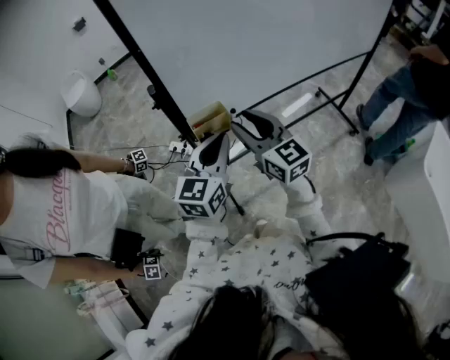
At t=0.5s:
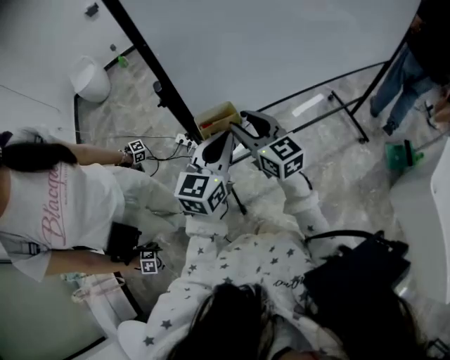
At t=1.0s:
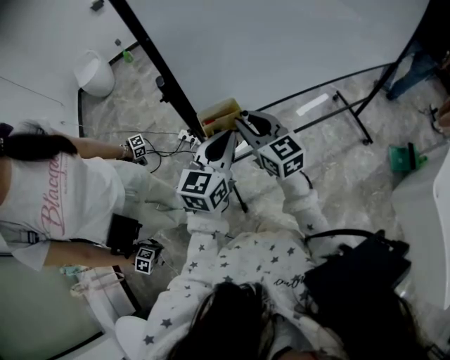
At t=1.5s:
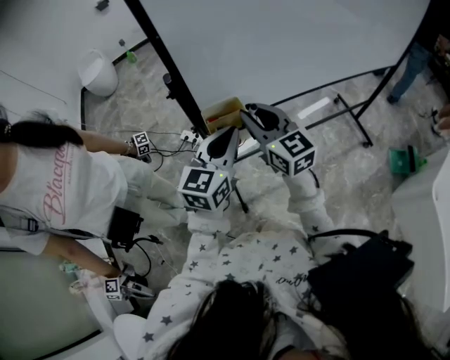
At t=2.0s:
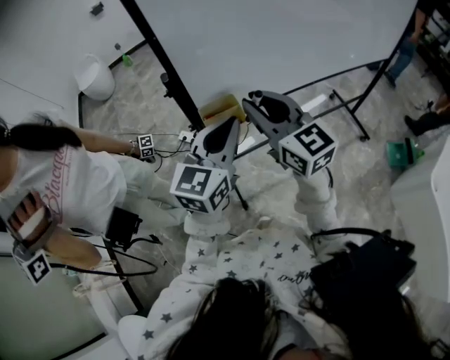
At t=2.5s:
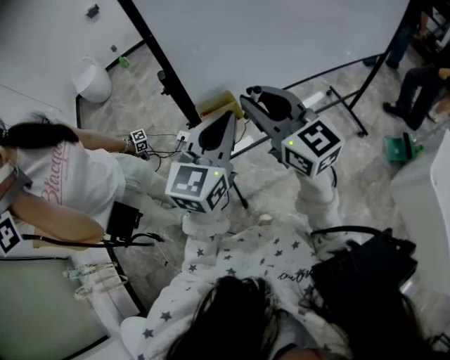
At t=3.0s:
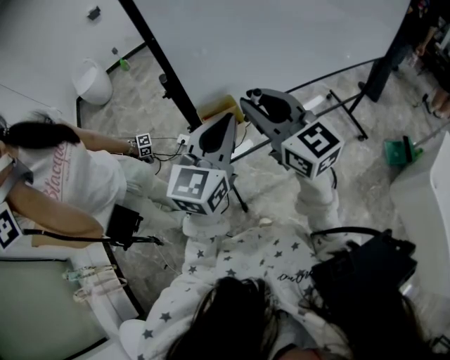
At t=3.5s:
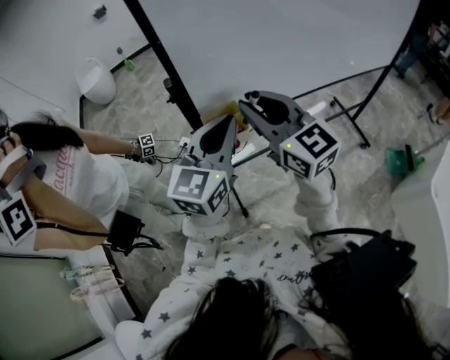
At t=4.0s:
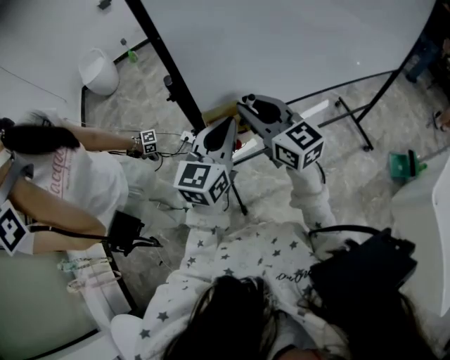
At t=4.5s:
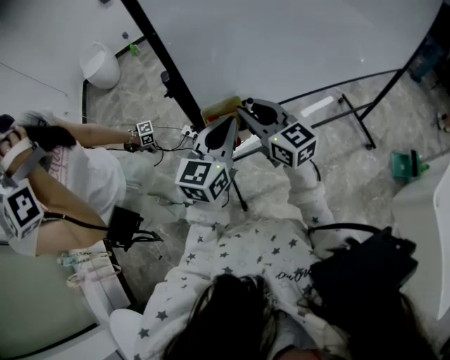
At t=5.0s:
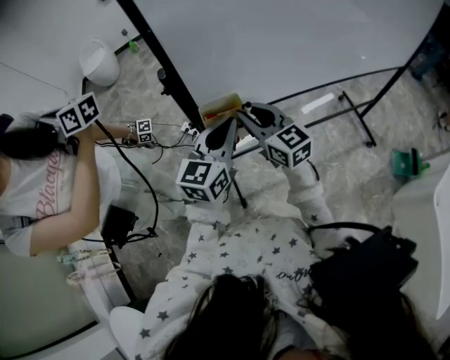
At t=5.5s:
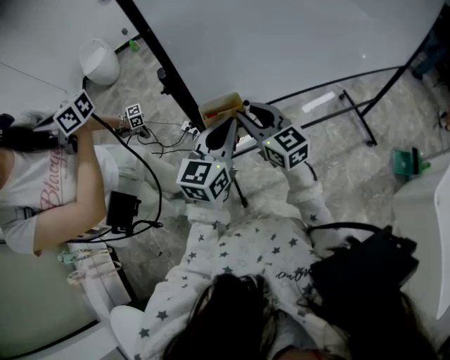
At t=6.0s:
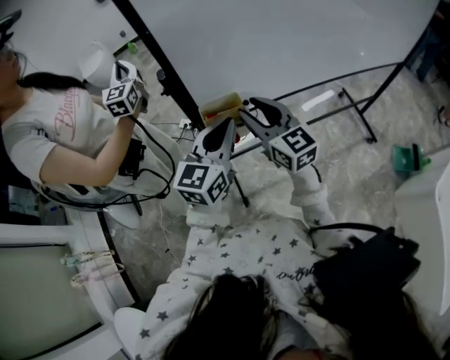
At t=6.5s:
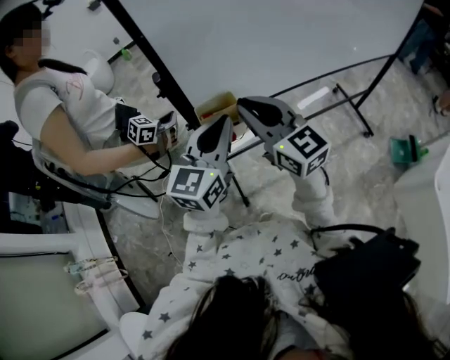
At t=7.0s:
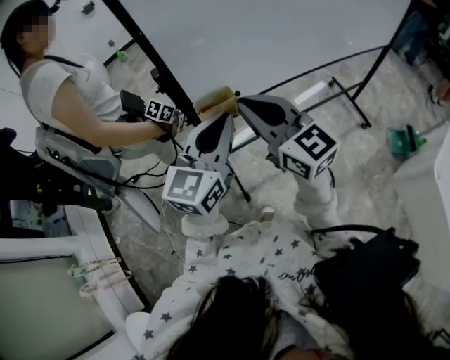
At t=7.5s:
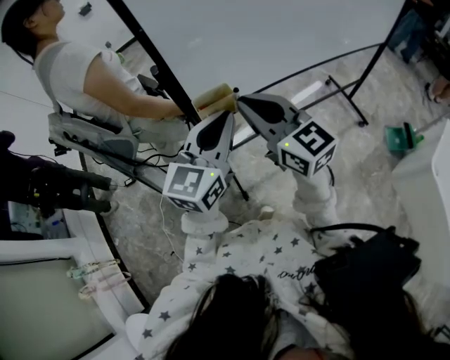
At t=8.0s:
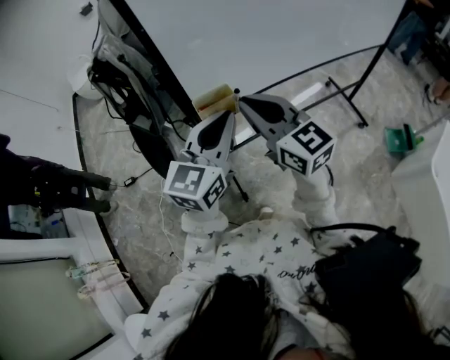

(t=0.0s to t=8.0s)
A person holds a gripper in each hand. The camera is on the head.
t=0.0s - t=2.0s: The grippers both shift upward by approximately 5 cm.
t=2.0s - t=4.0s: The right gripper changes place by some 5 cm. The left gripper ends up roughly 5 cm from where it was.
t=4.0s - t=6.0s: The right gripper moves downward, approximately 5 cm.
t=6.0s - t=8.0s: The grippers both shift upward by approximately 10 cm. The right gripper closes.

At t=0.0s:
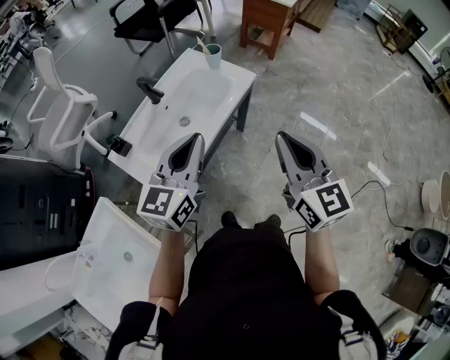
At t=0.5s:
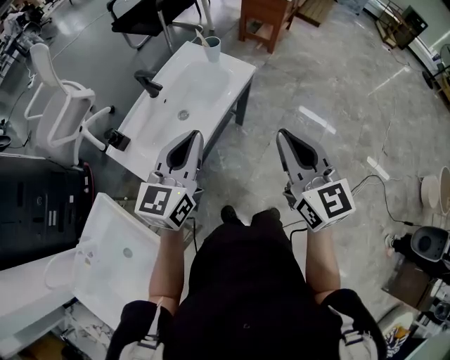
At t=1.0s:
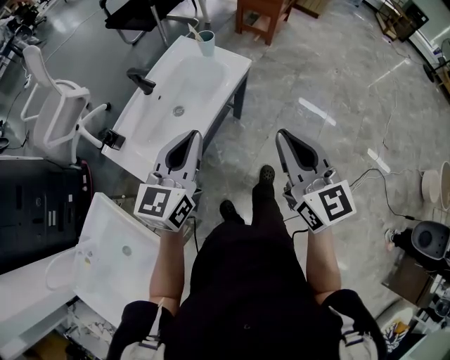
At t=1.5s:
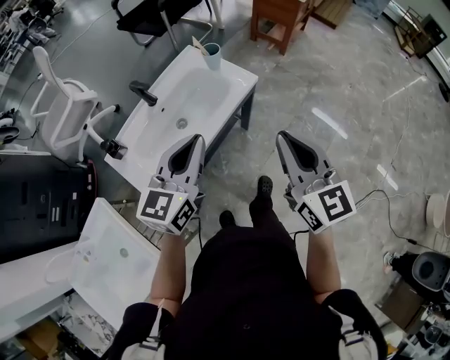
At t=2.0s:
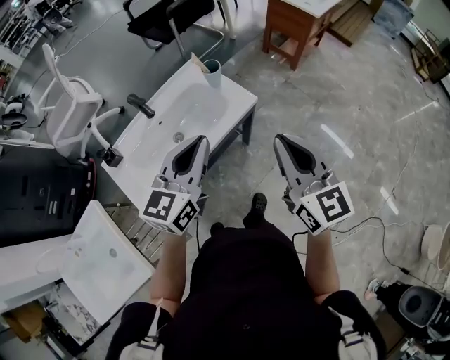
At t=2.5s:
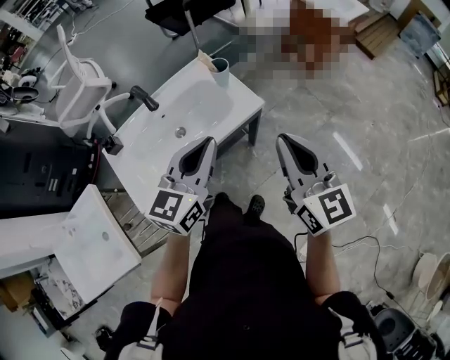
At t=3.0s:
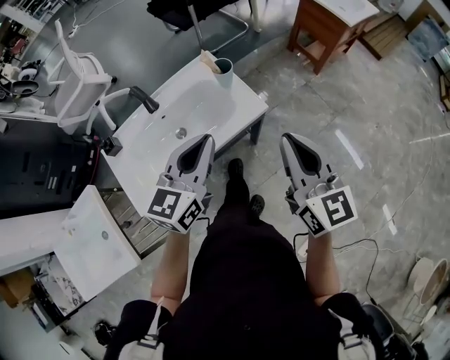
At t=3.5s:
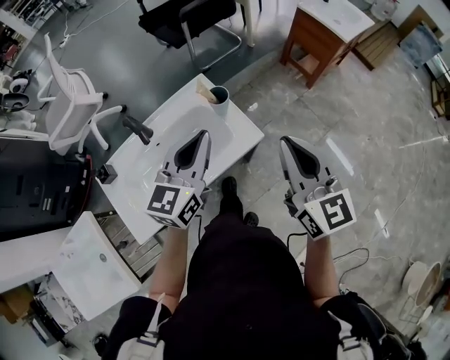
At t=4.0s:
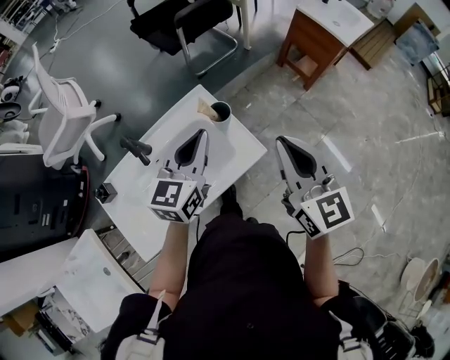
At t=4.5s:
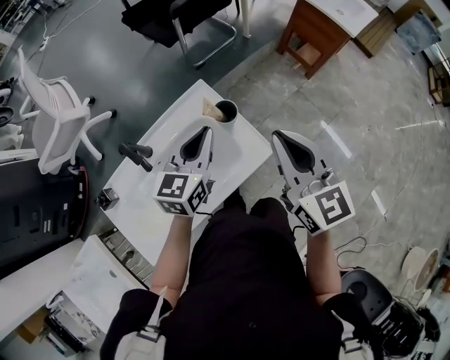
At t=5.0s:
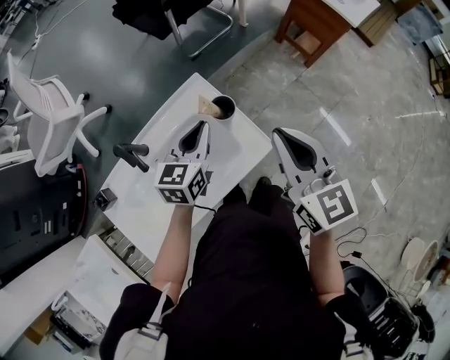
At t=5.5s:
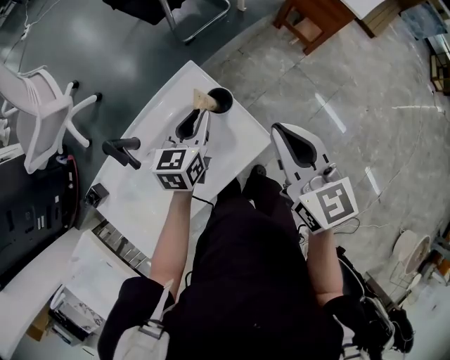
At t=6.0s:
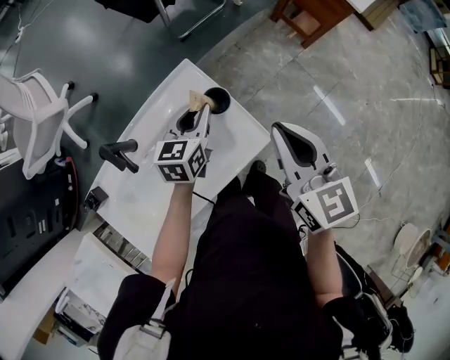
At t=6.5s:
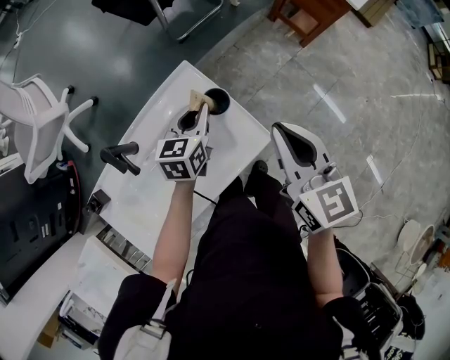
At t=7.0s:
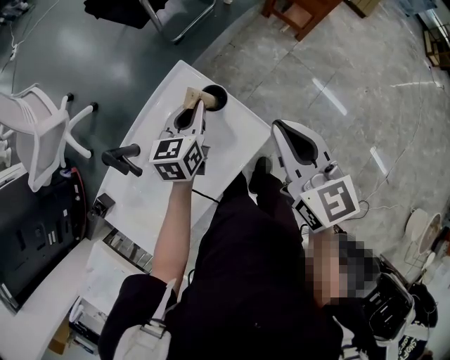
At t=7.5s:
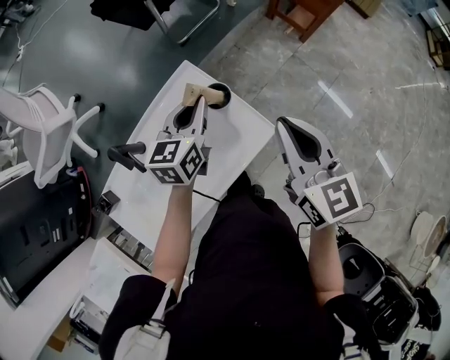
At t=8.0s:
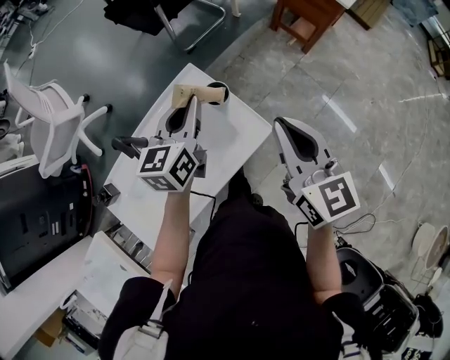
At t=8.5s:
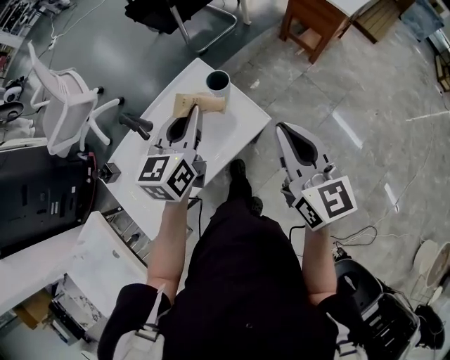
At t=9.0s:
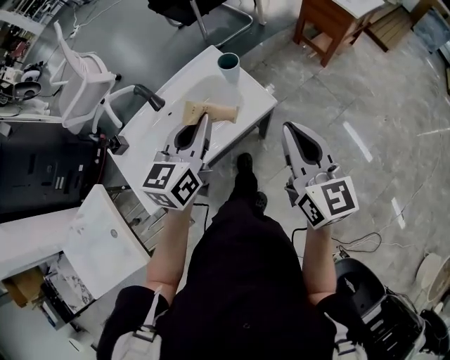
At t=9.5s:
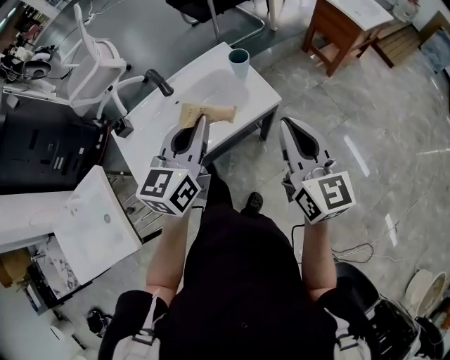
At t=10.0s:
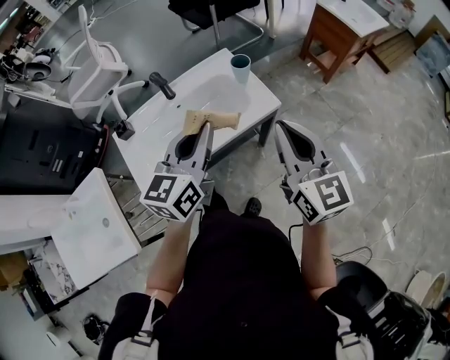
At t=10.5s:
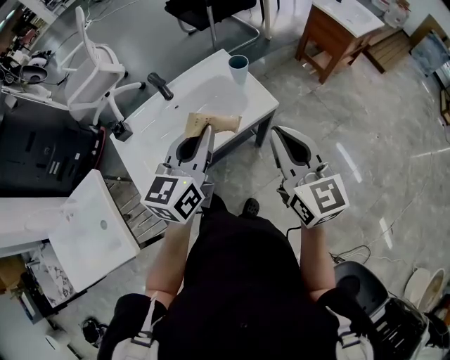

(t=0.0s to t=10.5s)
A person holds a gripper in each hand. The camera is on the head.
t=0.0s - t=2.0s: The two grippers go roughly 15 cm forward and to the right.
t=2.0s - t=4.0s: The two grippers go roughly 25 cm forward.
t=4.0s - t=6.5s: The left gripper travels downward and forward by about 20 cm, and rotates approximately 20 degrees, while the right gripper shifts some 10 cm forward and downward.
t=6.5s - t=8.5s: The right gripper moves backward, approximately 15 cm; the left gripper is displaced upward and backward by roughly 20 cm.
t=8.5s - t=10.5s: The right gripper travels backward and to the left by approximately 15 cm. Meanwhile the left gripper heads backward, covering about 20 cm.

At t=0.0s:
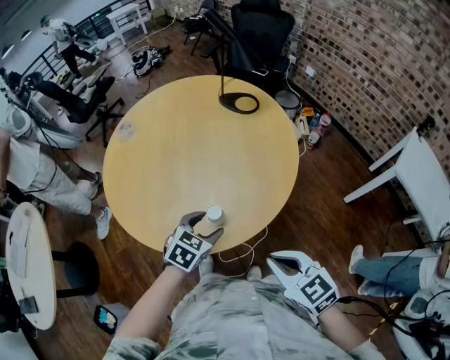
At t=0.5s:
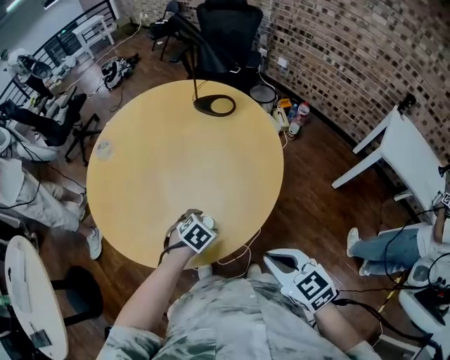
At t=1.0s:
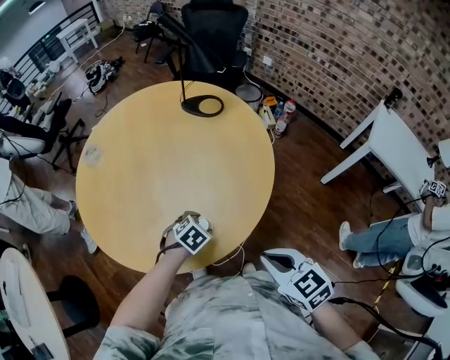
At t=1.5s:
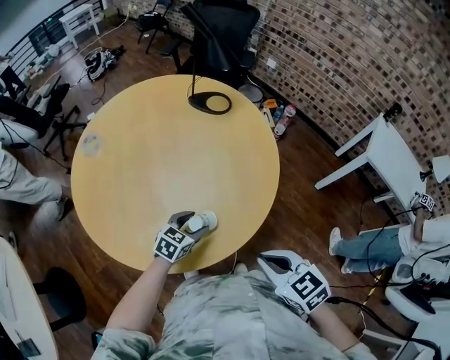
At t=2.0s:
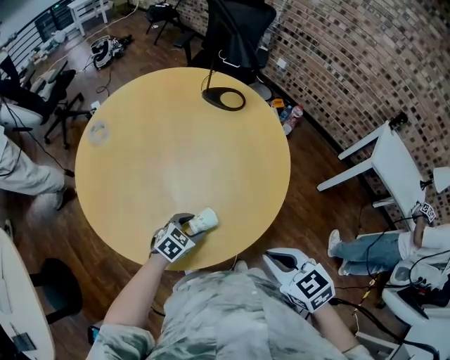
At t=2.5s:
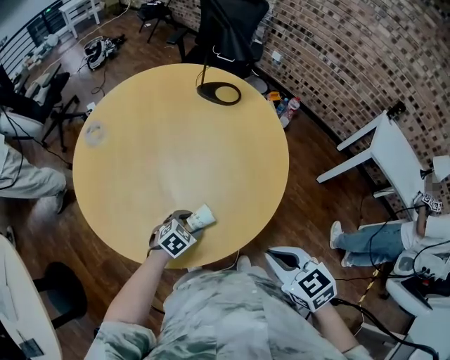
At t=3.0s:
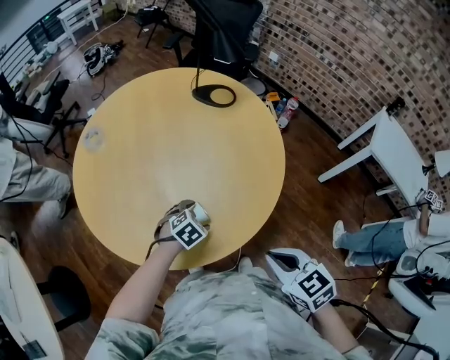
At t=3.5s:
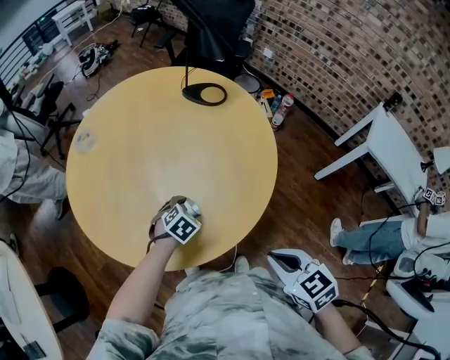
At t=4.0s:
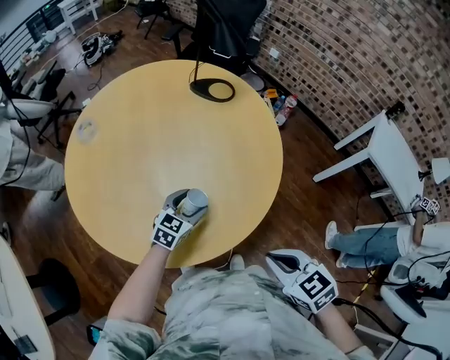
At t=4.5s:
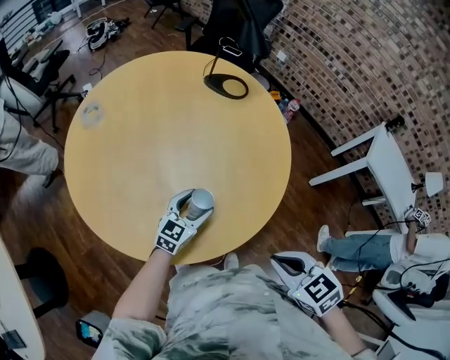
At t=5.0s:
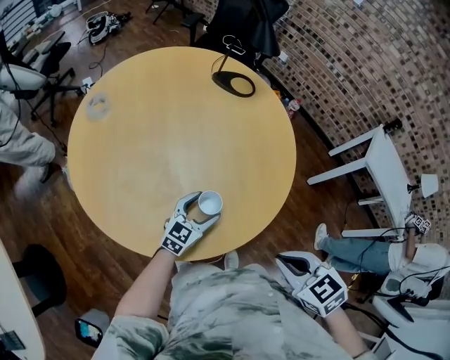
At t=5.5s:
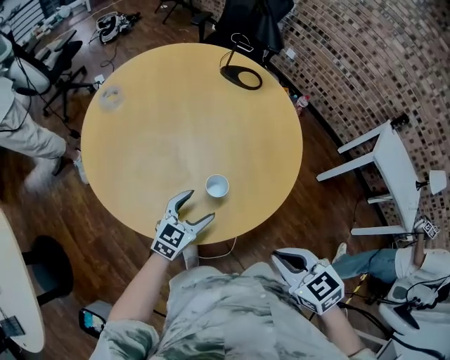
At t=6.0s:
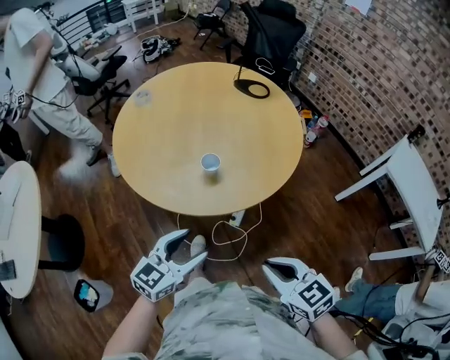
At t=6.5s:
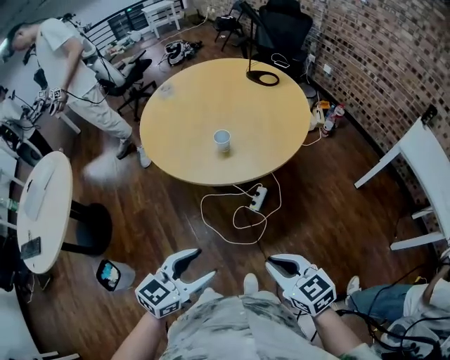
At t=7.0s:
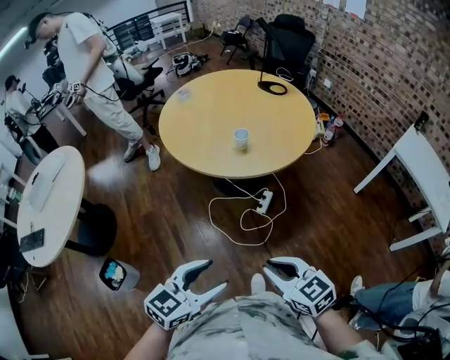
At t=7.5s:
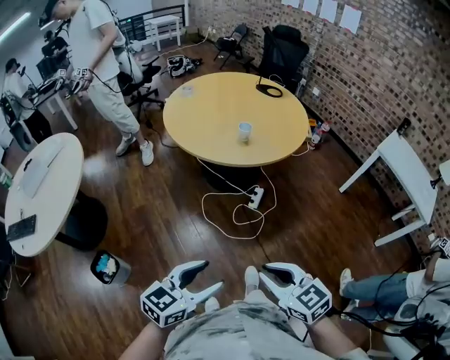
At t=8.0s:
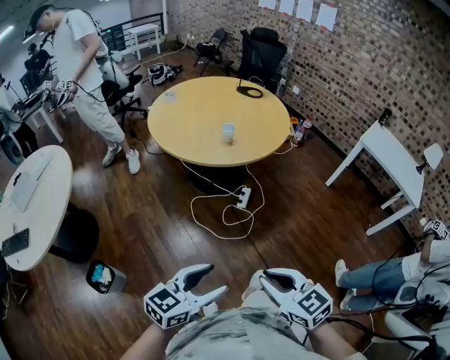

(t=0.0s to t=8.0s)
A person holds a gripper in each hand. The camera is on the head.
t=0.0s - t=2.0s: The right gripper shifts some 10 cm to the left; the left gripper shifts about 15 cm downward and to the left.
t=2.0s - t=4.0s: The left gripper heads forward, covering approximately 10 cm, and rotates approximately 20 degrees. The right gripper shifts about 5 cm to the right.
t=4.0s - t=6.0s: The right gripper goes roughly 15 cm backward; the left gripper goes about 35 cm backward and upward.
t=6.0s - t=8.0s: The two grippers go some 40 cm backward.
